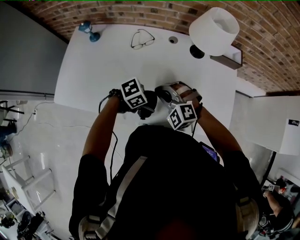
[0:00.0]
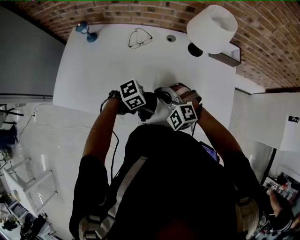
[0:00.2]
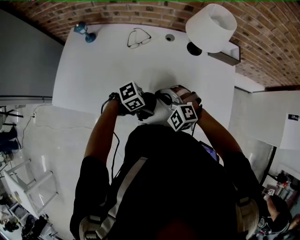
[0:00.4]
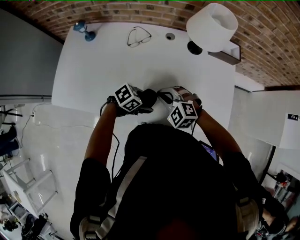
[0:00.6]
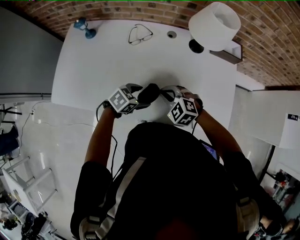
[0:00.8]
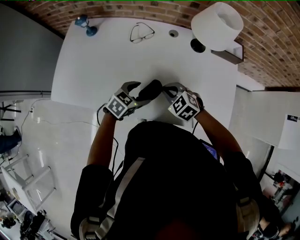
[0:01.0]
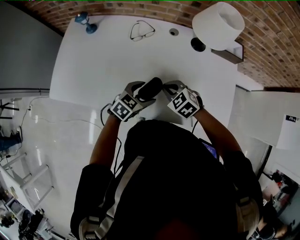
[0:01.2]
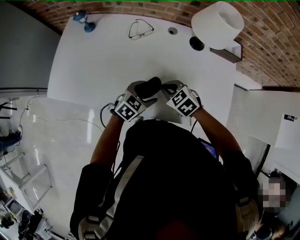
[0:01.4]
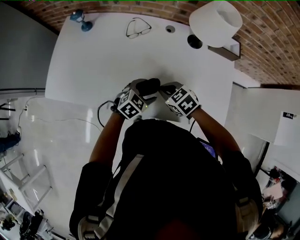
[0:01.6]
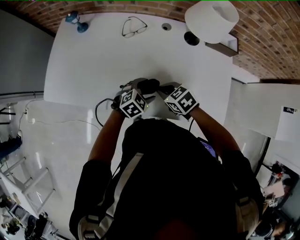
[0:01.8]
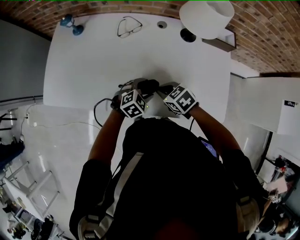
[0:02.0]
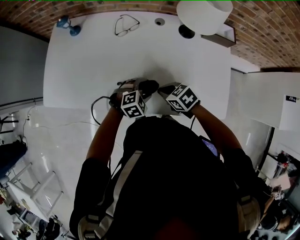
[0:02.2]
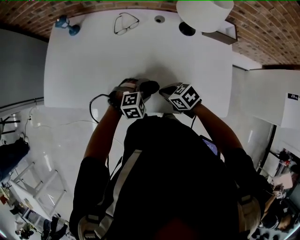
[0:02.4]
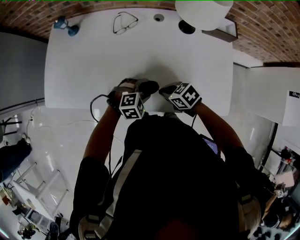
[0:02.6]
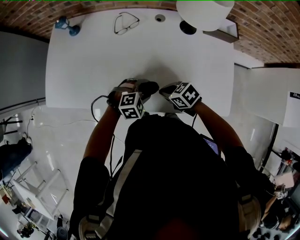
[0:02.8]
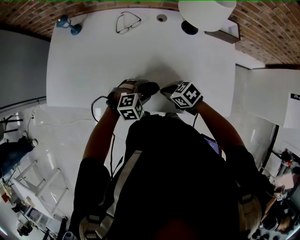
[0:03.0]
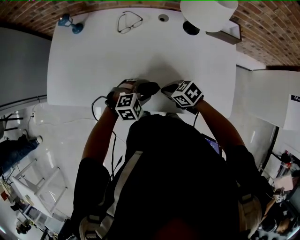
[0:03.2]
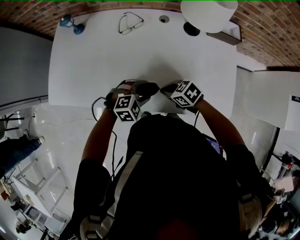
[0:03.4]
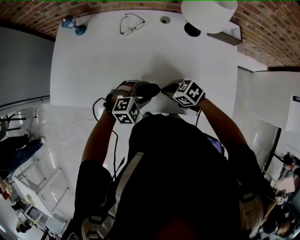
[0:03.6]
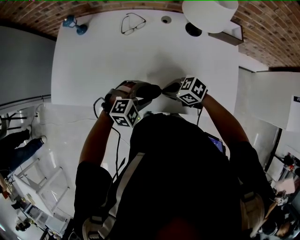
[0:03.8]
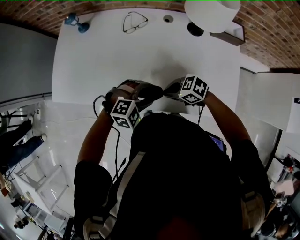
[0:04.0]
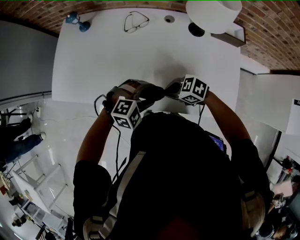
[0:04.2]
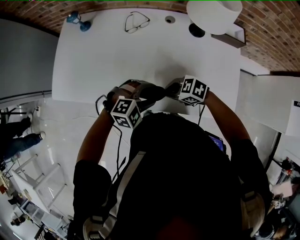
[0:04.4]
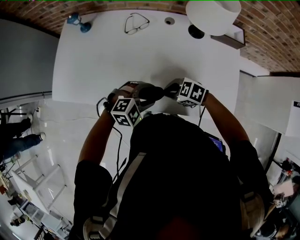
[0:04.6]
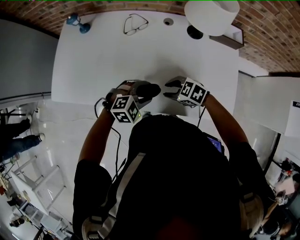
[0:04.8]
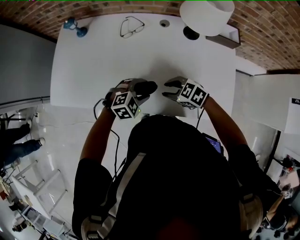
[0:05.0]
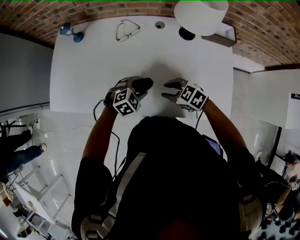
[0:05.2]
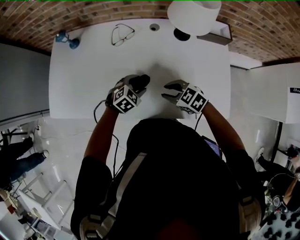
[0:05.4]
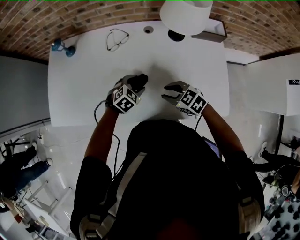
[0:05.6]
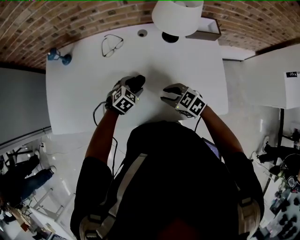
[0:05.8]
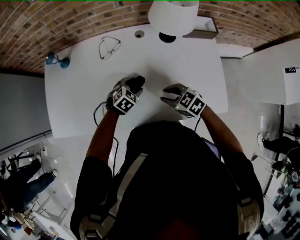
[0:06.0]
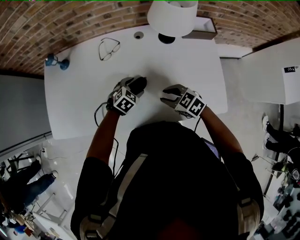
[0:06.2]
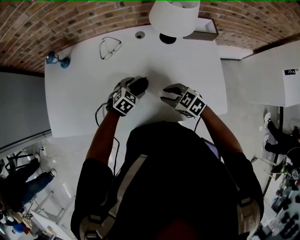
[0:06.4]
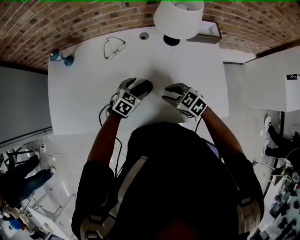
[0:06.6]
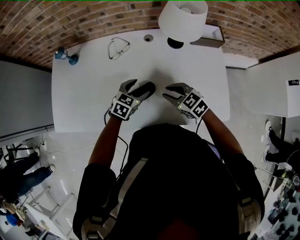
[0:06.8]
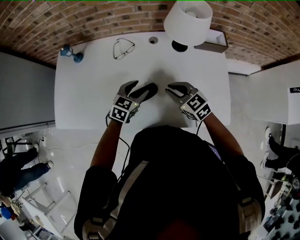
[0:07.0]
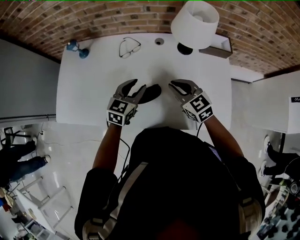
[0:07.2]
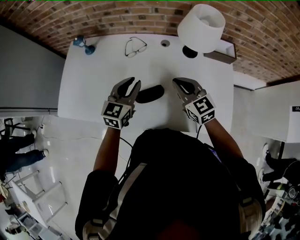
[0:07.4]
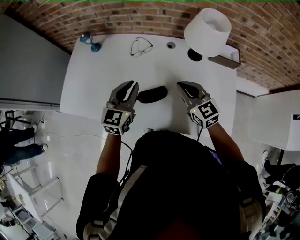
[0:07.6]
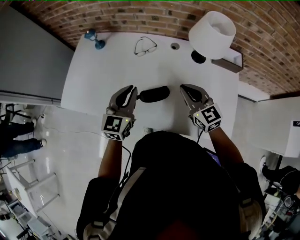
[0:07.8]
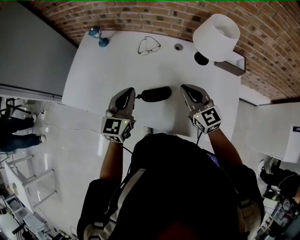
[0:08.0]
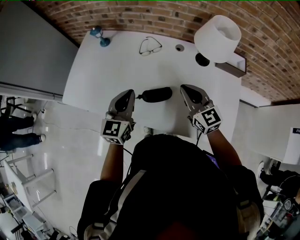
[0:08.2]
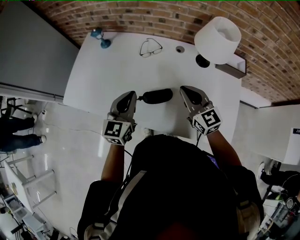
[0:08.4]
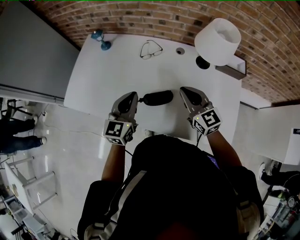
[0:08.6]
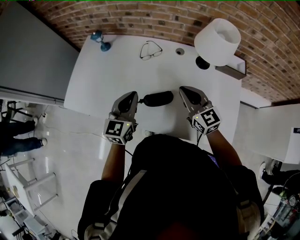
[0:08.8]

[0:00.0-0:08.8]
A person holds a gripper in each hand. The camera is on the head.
0:00.0 to 0:01.4: The left gripper moves about 5 cm, and swivels about 40 degrees. The right gripper travels downward by about 5 cm, and rotates around the line of its fingers by approximately 40 degrees, clockwise from behind.
0:01.4 to 0:03.0: The left gripper swivels about 40 degrees; the right gripper moves roughly 5 cm, and changes its angle by some 30 degrees.
0:03.0 to 0:04.4: The right gripper swivels some 30 degrees, while the left gripper travels upward by about 10 cm.
0:04.4 to 0:05.8: The left gripper ends up about 15 cm from where it was, and changes its angle by roughly 30 degrees, while the right gripper moves approximately 10 cm, and changes its angle by roughly 30 degrees.
0:05.8 to 0:07.4: The right gripper is displaced upward and forward by about 15 cm, and rotates some 30 degrees. Meanwhile the left gripper heads upward, covering some 20 cm, points its fingers approximately 40 degrees further upward, and closes its fingers.
0:07.4 to 0:08.8: The left gripper shifts approximately 5 cm to the left.

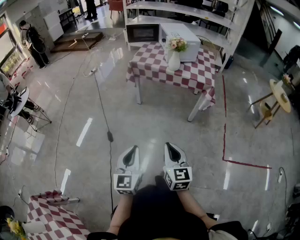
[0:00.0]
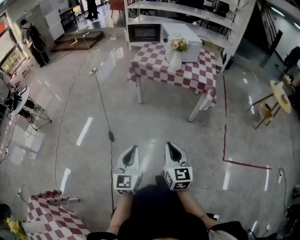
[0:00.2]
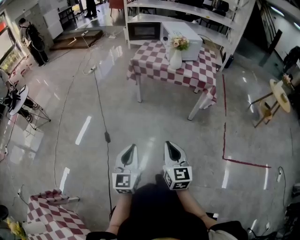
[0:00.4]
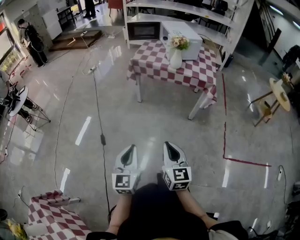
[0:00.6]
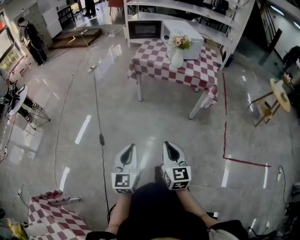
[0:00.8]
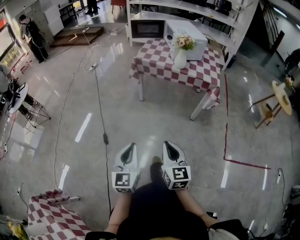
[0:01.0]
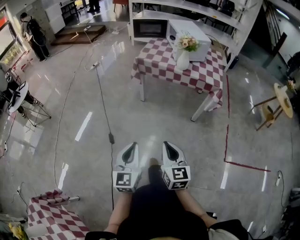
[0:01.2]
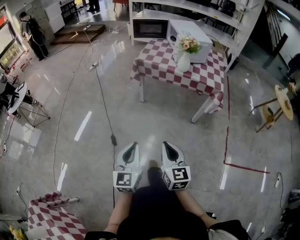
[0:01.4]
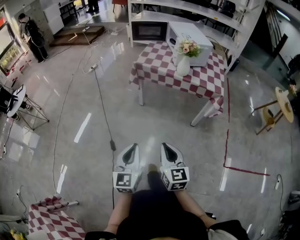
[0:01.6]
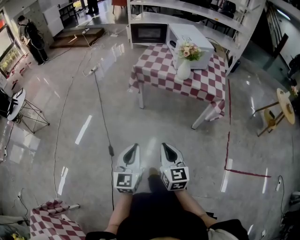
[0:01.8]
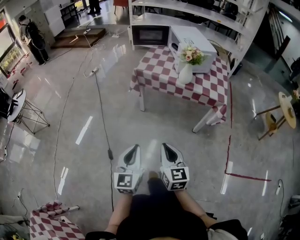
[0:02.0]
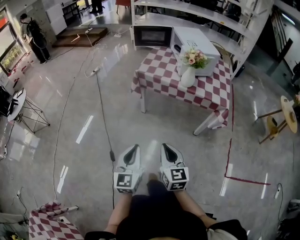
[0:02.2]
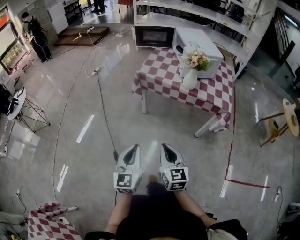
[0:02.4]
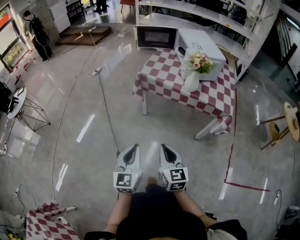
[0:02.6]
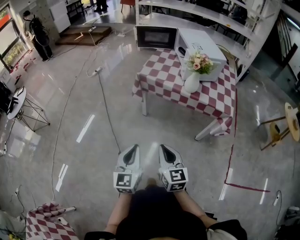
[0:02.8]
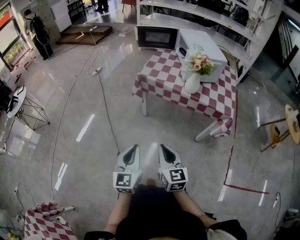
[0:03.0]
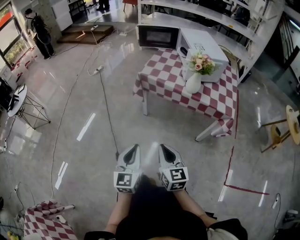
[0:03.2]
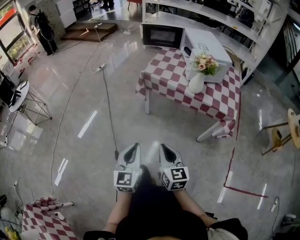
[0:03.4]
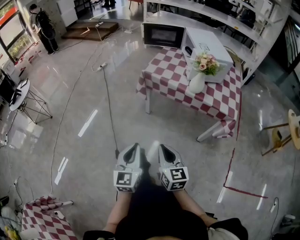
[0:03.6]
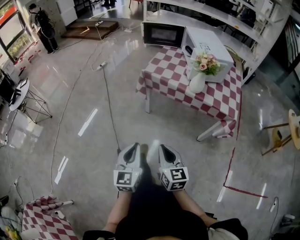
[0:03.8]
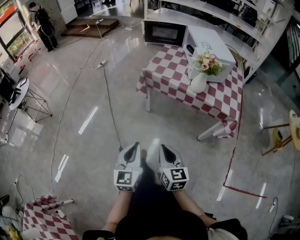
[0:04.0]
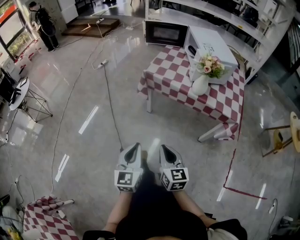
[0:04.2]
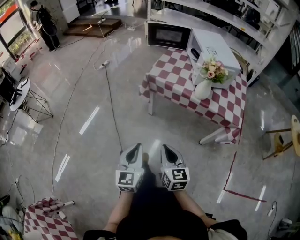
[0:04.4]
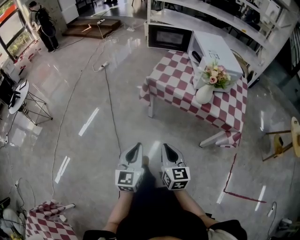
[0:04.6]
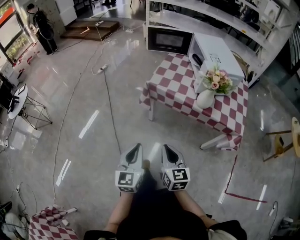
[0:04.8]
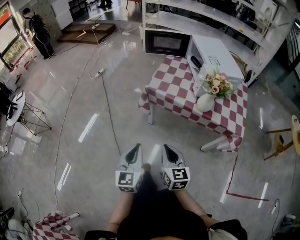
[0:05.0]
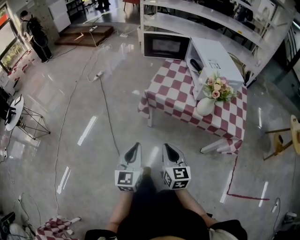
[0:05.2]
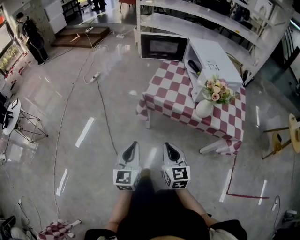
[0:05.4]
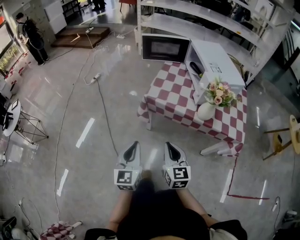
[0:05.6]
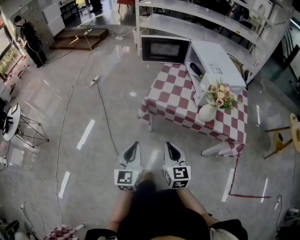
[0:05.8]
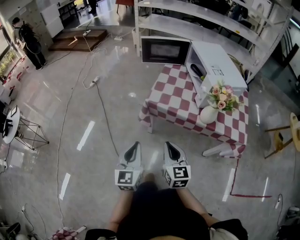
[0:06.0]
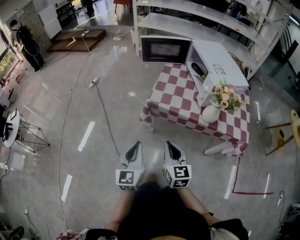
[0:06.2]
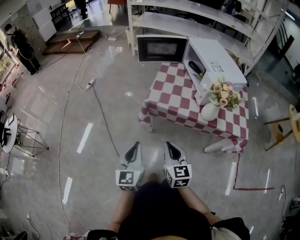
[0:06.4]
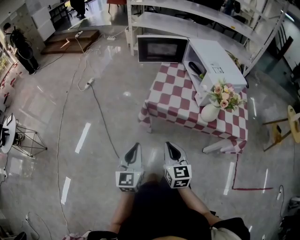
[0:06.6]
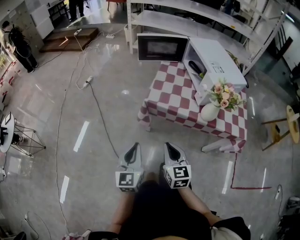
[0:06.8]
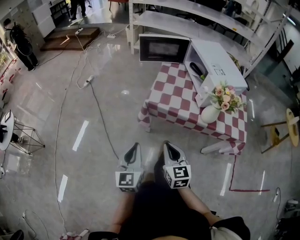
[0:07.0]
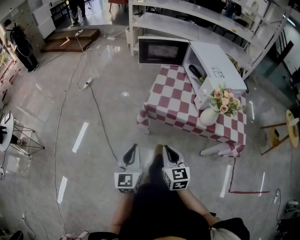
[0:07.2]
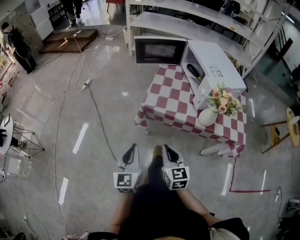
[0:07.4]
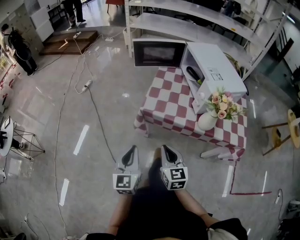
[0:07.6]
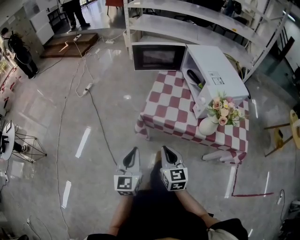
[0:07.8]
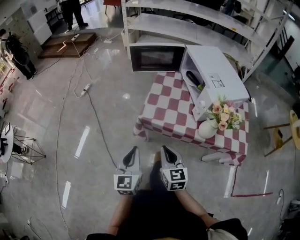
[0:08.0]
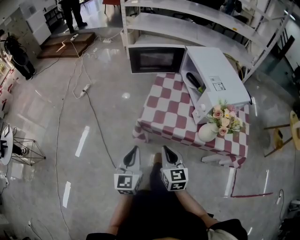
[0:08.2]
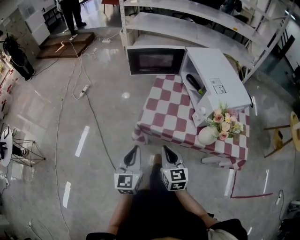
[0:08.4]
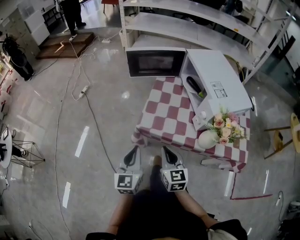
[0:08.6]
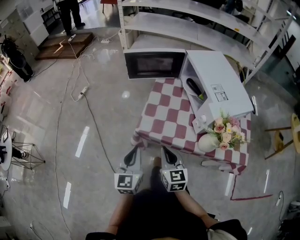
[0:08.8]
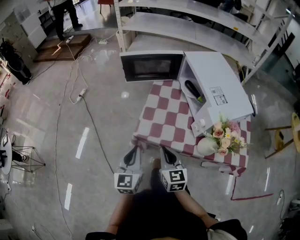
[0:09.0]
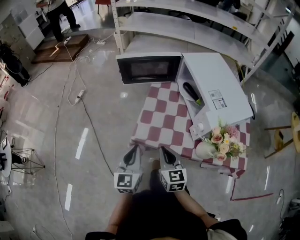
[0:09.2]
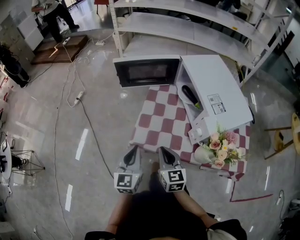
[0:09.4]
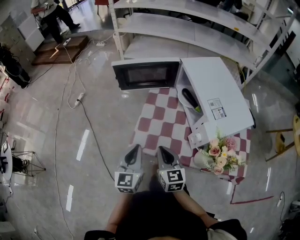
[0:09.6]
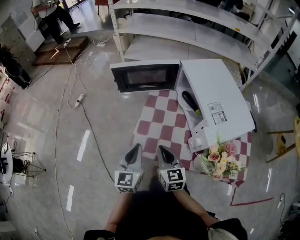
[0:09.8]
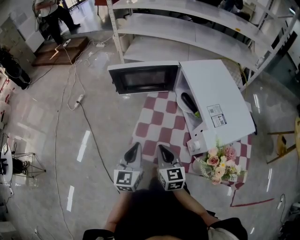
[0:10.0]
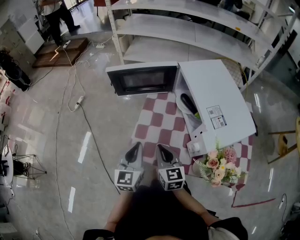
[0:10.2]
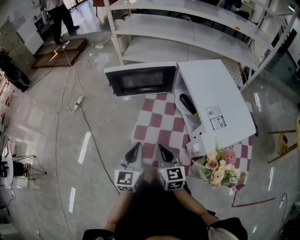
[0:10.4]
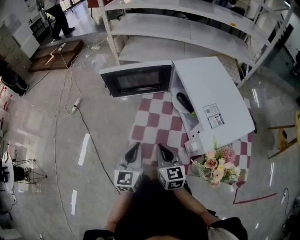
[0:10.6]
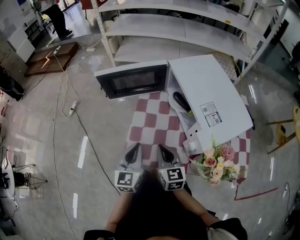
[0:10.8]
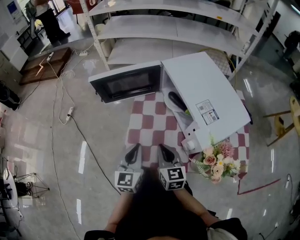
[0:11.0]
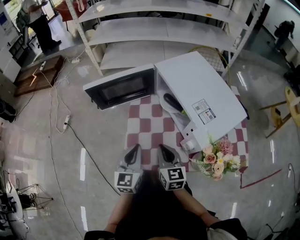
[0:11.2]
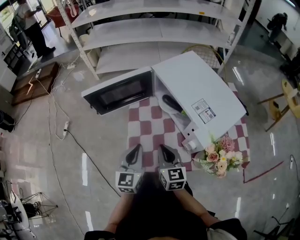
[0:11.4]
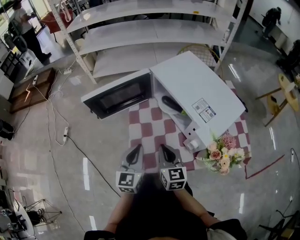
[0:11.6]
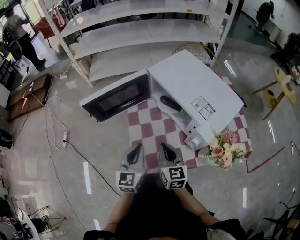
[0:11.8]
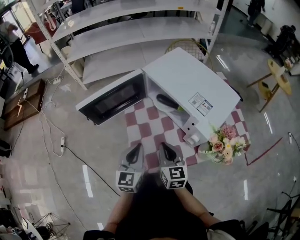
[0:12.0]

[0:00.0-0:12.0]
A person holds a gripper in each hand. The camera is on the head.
0:00.0 to 0:01.6: The left gripper travels forward by approximately 10 cm. Meanwhile the right gripper goes about 10 cm forward and to the left.
0:01.6 to 0:03.0: The two grippers go roughly 15 cm forward.
0:03.0 to 0:04.4: The grippers both shift forward by about 5 cm.
0:04.4 to 0:06.0: The grippers both shift forward by roughly 20 cm.
0:06.0 to 0:07.6: The two grippers go about 5 cm forward.
0:07.6 to 0:09.0: The grippers both shift forward by some 15 cm.
0:09.0 to 0:10.4: The left gripper moves forward and to the right, some 15 cm. Meanwhile the right gripper shifts some 15 cm forward.
0:10.4 to 0:12.0: The right gripper changes its angle by about 30 degrees. Meanwhile the left gripper shifts by roughly 5 cm, and rotates roughly 30 degrees.

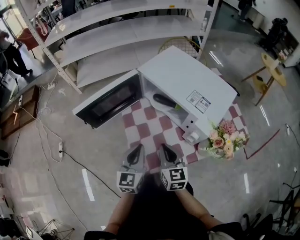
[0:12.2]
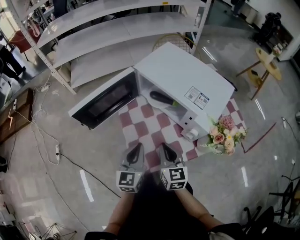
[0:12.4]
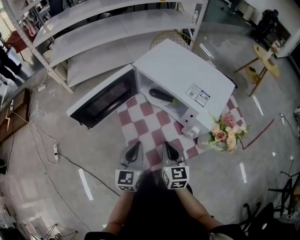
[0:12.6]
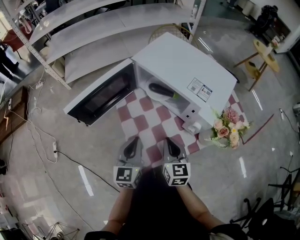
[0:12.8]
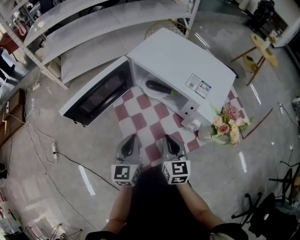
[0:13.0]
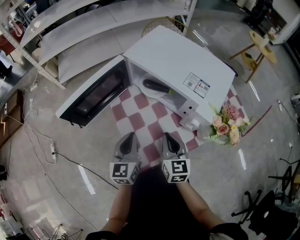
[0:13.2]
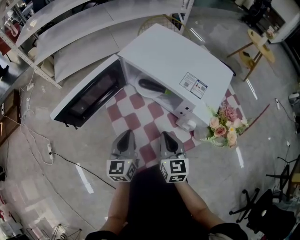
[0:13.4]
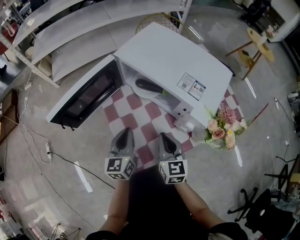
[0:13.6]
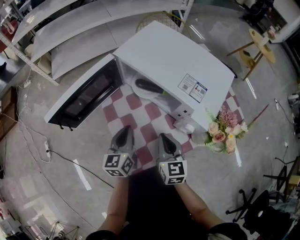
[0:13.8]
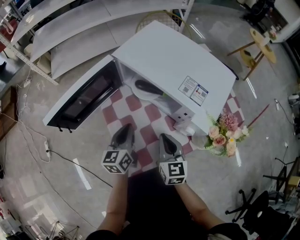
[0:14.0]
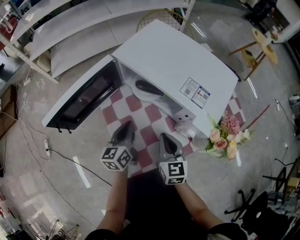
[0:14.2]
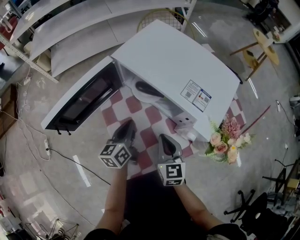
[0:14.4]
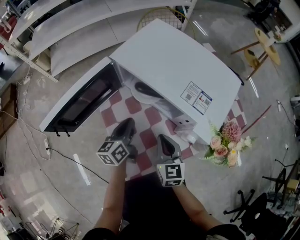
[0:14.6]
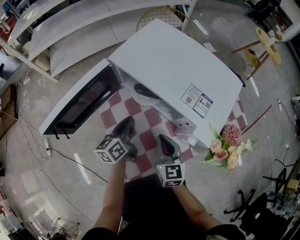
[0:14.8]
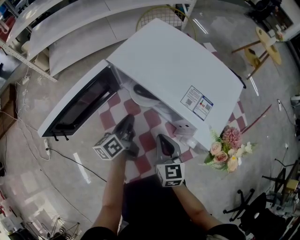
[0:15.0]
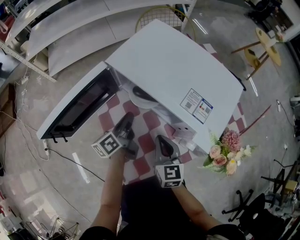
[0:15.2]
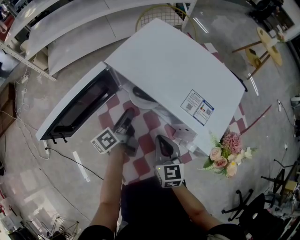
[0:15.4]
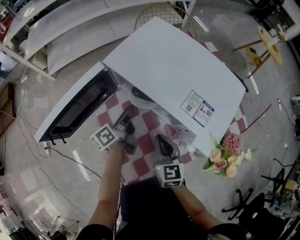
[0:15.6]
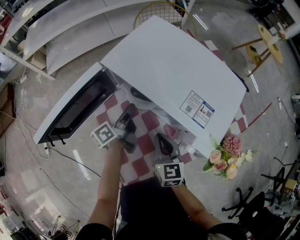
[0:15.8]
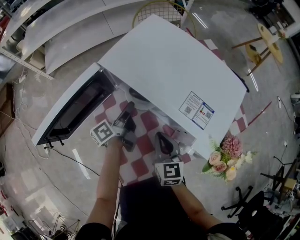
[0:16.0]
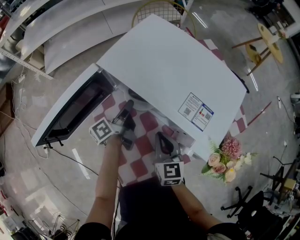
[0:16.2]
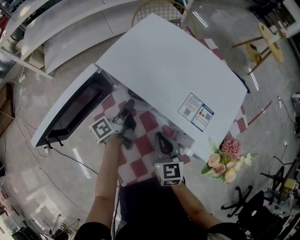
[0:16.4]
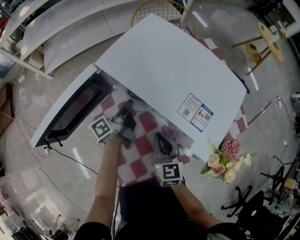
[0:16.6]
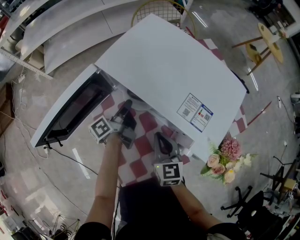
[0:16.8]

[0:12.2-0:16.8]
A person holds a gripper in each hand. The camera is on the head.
0:12.2 to 0:13.8: The left gripper moves forward and downward, approximately 10 cm; the right gripper ends up approximately 5 cm from where it was.
0:13.8 to 0:15.2: The left gripper travels forward by approximately 10 cm, and turns by roughly 40 degrees. The right gripper goes some 5 cm forward.
0:15.2 to 0:16.8: The left gripper moves forward, some 5 cm, swivels some 20 degrees, and opens and closes again.
